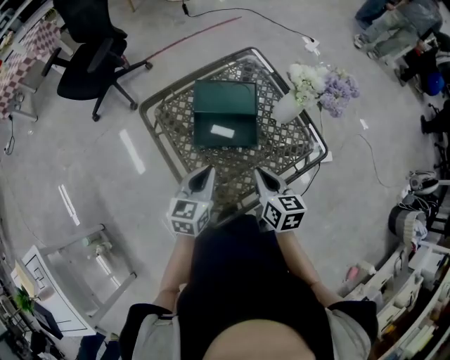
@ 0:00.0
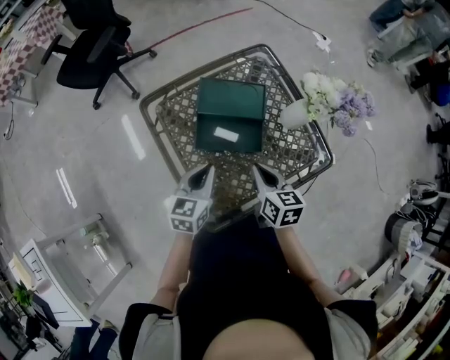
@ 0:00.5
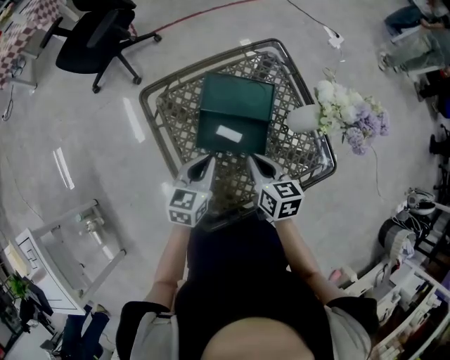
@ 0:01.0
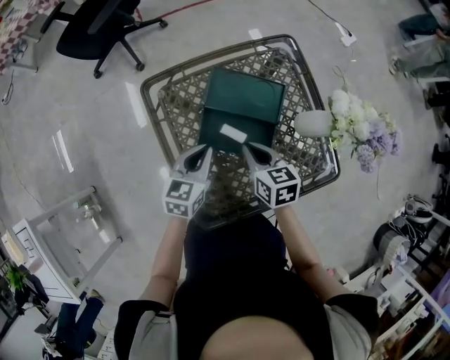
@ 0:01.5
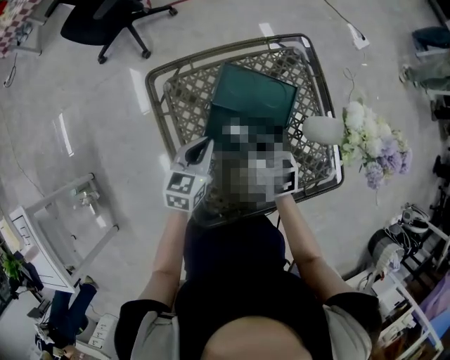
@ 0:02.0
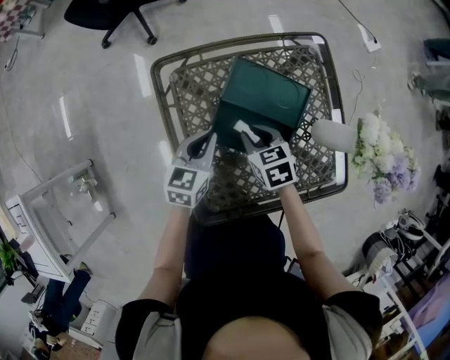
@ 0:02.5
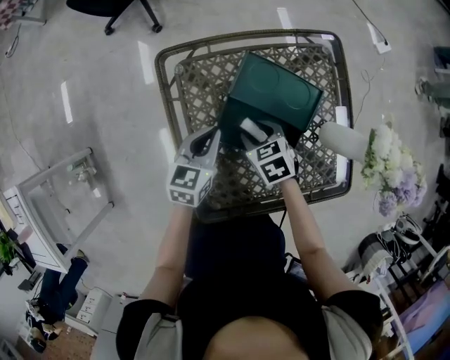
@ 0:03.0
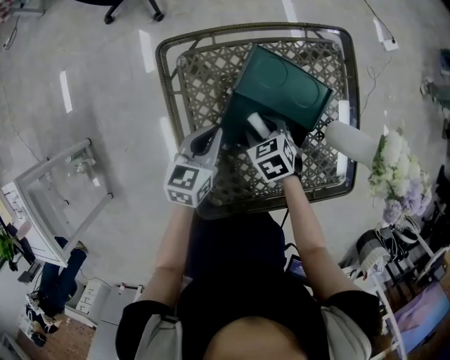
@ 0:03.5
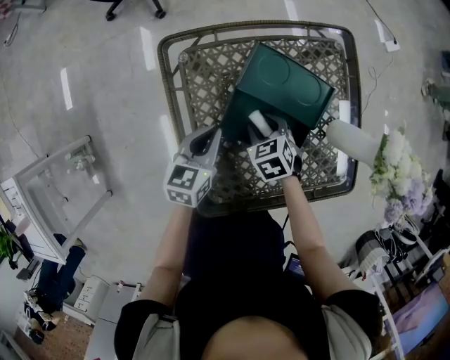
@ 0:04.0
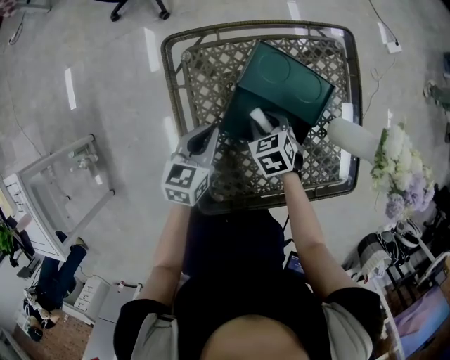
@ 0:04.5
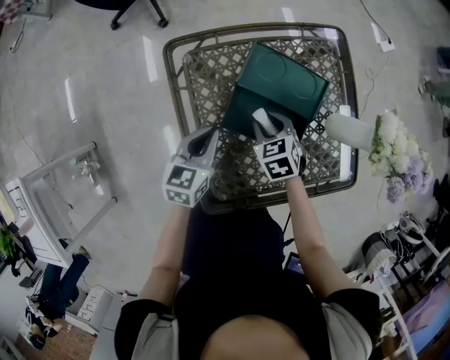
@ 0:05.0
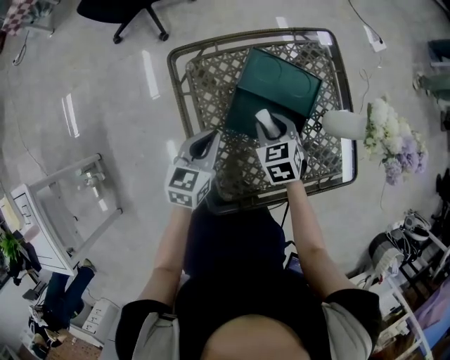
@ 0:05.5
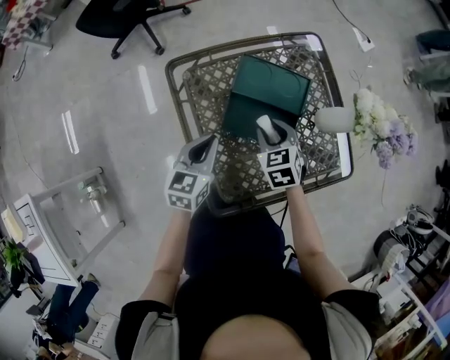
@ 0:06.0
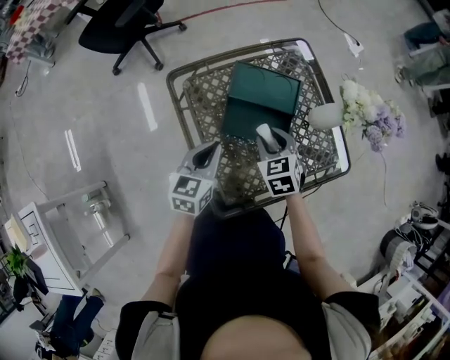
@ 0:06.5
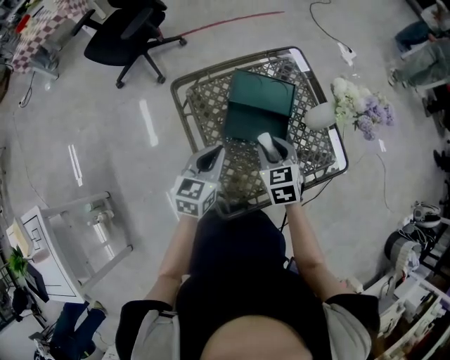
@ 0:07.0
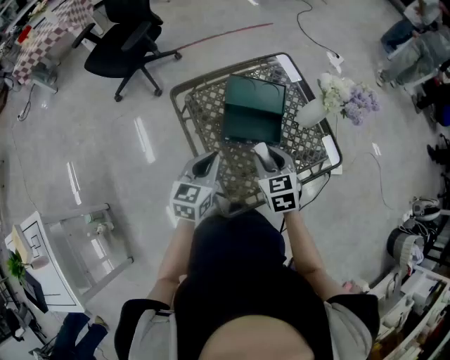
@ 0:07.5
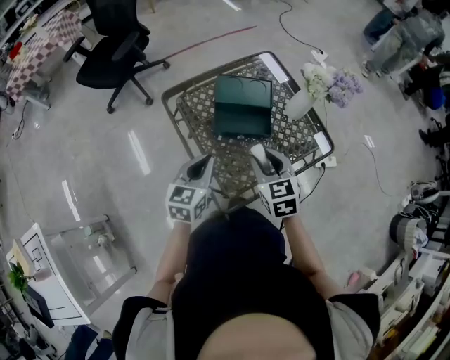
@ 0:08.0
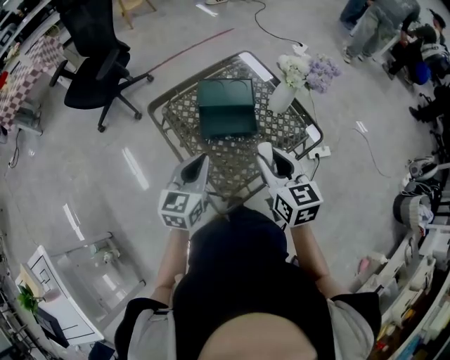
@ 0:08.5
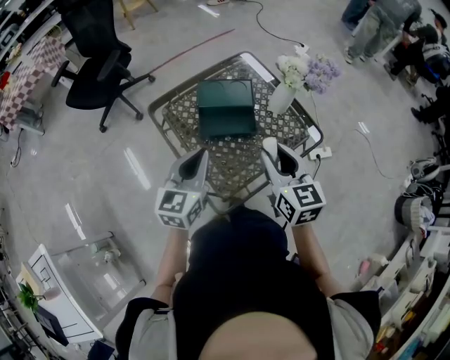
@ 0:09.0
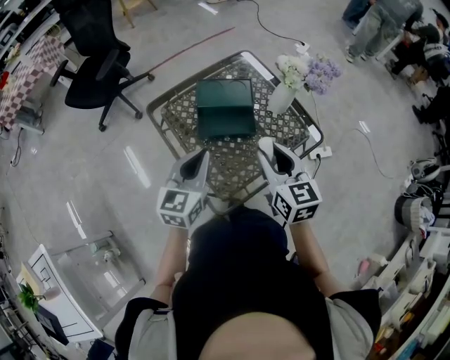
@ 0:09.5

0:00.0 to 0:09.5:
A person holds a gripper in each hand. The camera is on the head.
0:00.0 to 0:02.0: The left gripper moves forward and downward, approximately 15 cm. The right gripper shifts about 20 cm forward, downward and to the left, and changes its angle by roughly 30 degrees.
0:02.0 to 0:04.0: The right gripper shifts about 10 cm downward, swivels roughly 30 degrees, and opens its fingers.
0:04.0 to 0:05.5: The right gripper is displaced upward by some 10 cm; the left gripper heads upward, covering approximately 5 cm.
0:05.5 to 0:07.5: Both grippers move backward and upward, approximately 15 cm.
0:07.5 to 0:09.5: The left gripper heads upward, covering roughly 10 cm. Meanwhile the right gripper goes roughly 15 cm upward and to the right, and changes its angle by about 30 degrees.

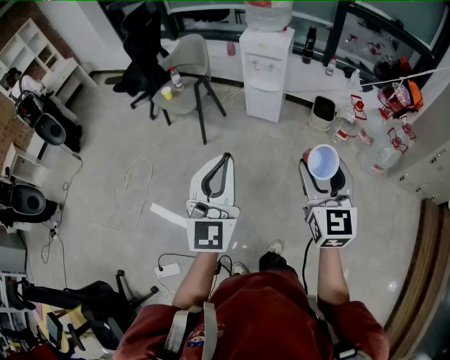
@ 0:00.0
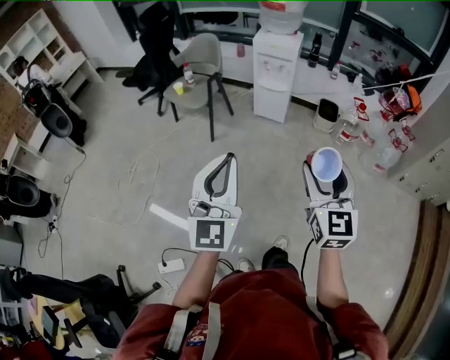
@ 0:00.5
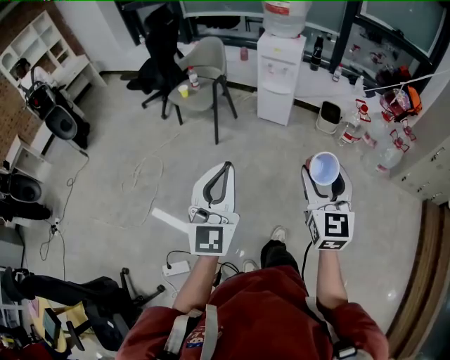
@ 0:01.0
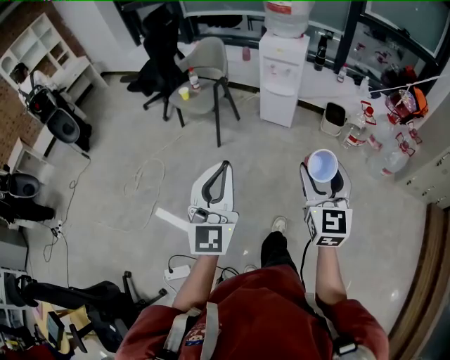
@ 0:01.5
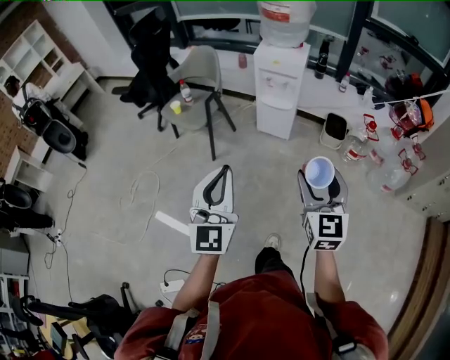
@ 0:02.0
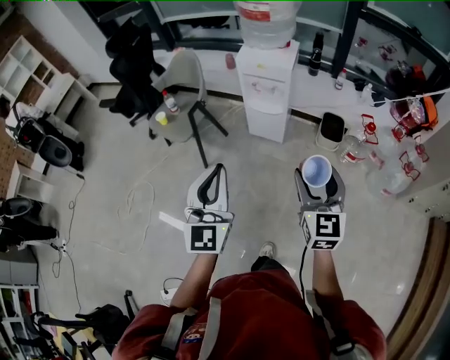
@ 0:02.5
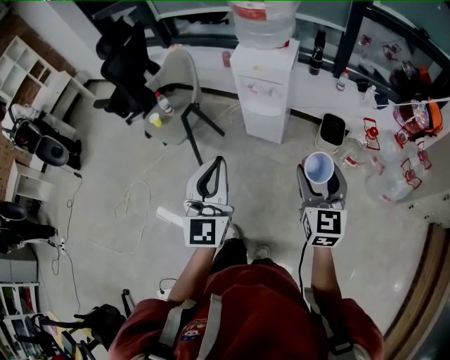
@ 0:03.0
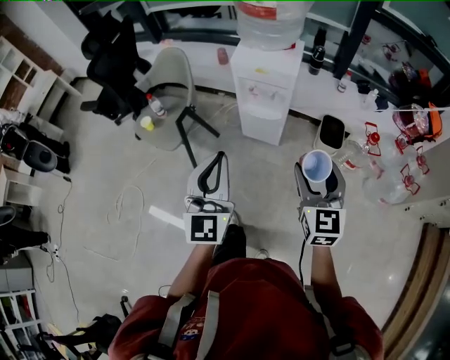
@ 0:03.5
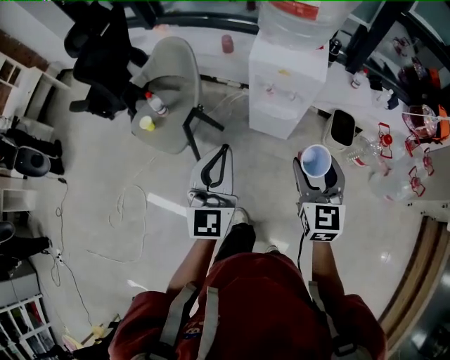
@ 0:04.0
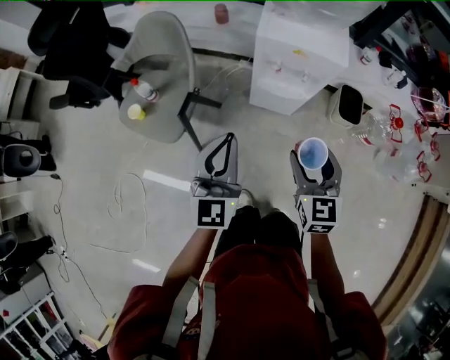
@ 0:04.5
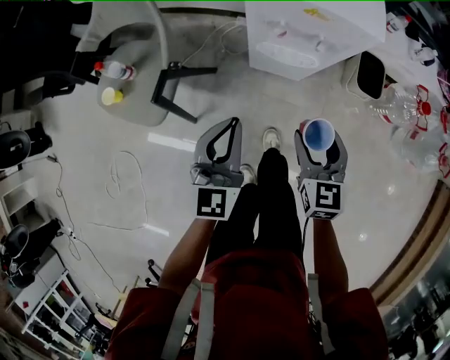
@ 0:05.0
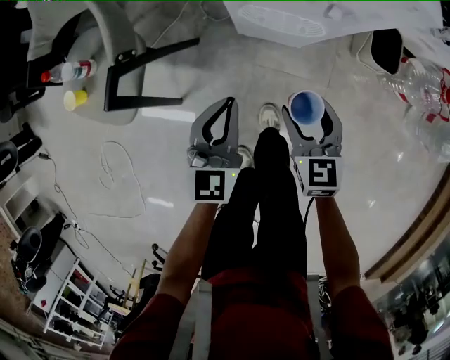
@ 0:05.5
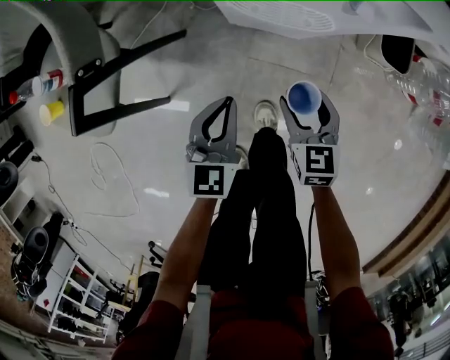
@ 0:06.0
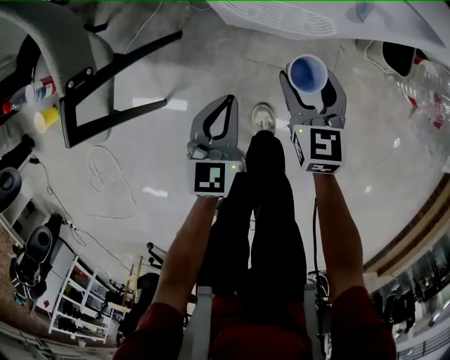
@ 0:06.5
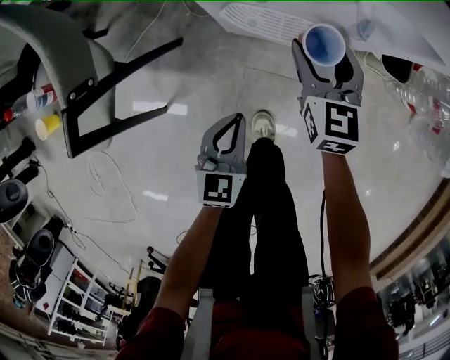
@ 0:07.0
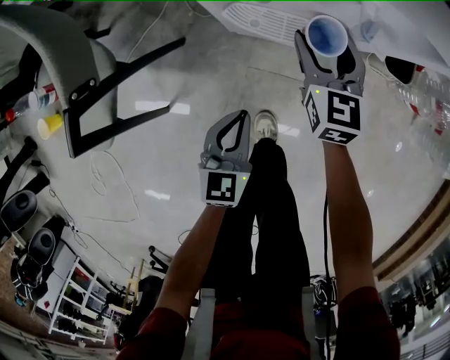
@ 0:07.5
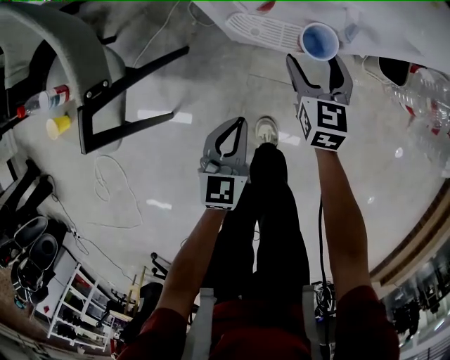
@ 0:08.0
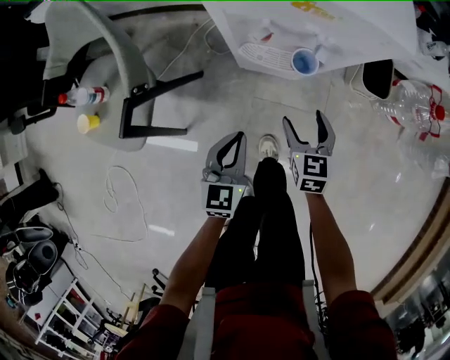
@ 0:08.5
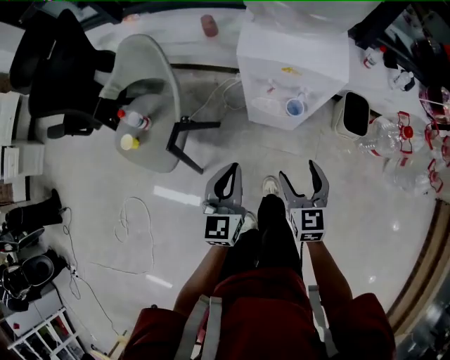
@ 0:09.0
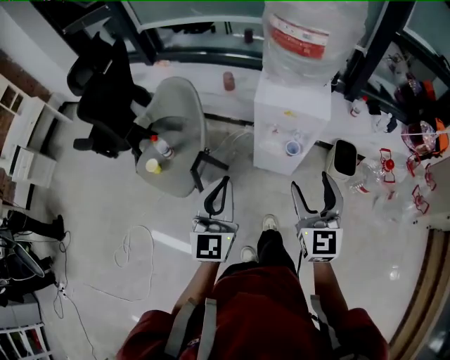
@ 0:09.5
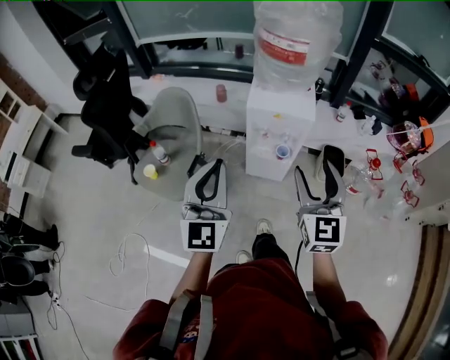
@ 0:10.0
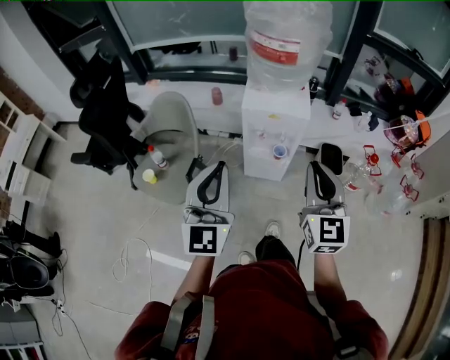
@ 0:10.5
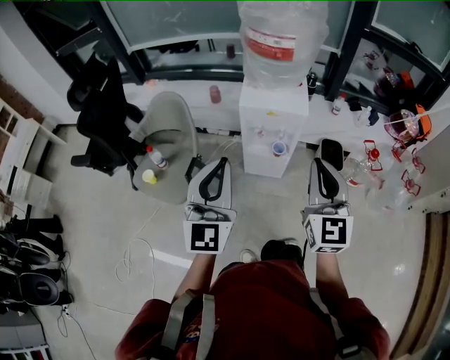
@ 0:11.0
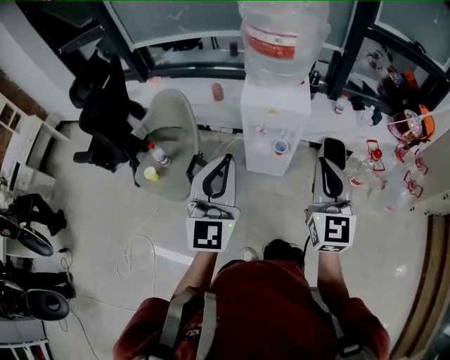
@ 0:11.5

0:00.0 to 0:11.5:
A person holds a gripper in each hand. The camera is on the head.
0:00.0 to 0:02.0: The left gripper travels forward and to the left by roughly 10 cm, while the right gripper moves forward, about 10 cm.
0:02.0 to 0:04.0: Both grippers travel together forward, roughly 40 cm.
0:04.0 to 0:06.0: The two grippers go some 50 cm downward. The right gripper rotates about 30 degrees; the left gripper tips its fingers downward by some 30 degrees.
0:06.0 to 0:07.5: The left gripper moves approximately 5 cm. The right gripper goes some 20 cm forward.
0:07.5 to 0:09.5: The right gripper heads upward and backward, covering roughly 60 cm, and rotates about 20 degrees. Meanwhile the left gripper is displaced upward by about 50 cm, and tilts its fingers roughly 30 degrees upward.
0:09.5 to 0:11.5: The right gripper heads upward and to the right, covering about 10 cm, and closes its fingers. The left gripper travels upward by about 10 cm.

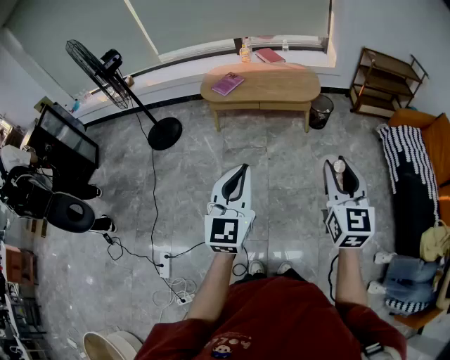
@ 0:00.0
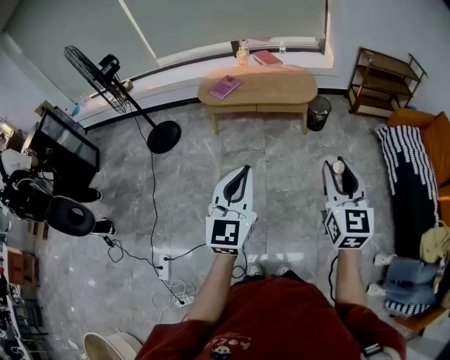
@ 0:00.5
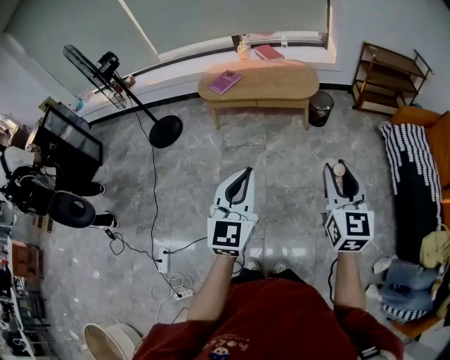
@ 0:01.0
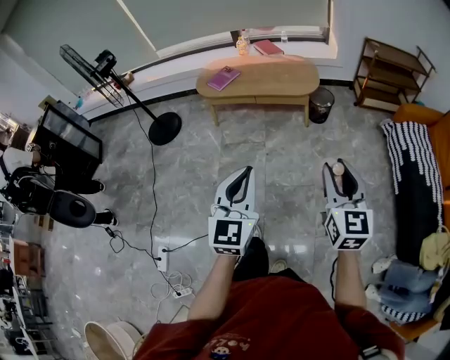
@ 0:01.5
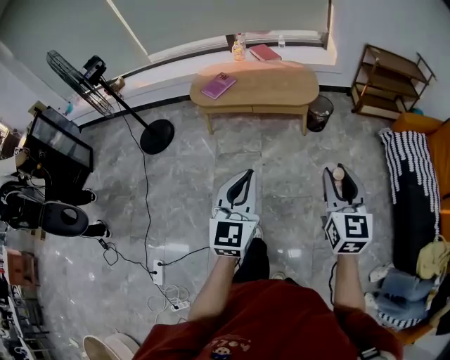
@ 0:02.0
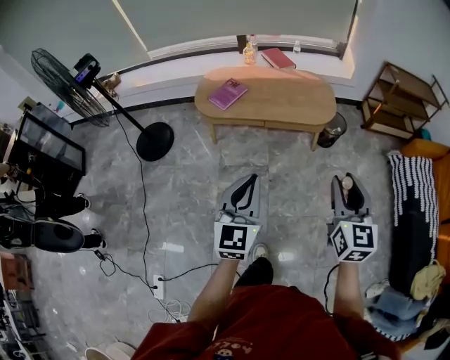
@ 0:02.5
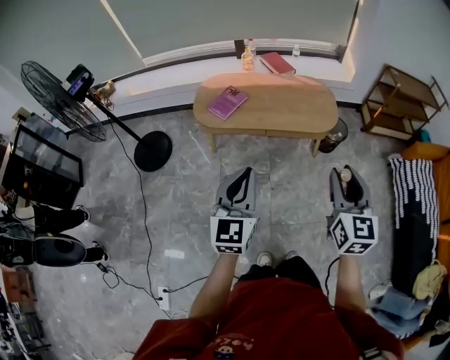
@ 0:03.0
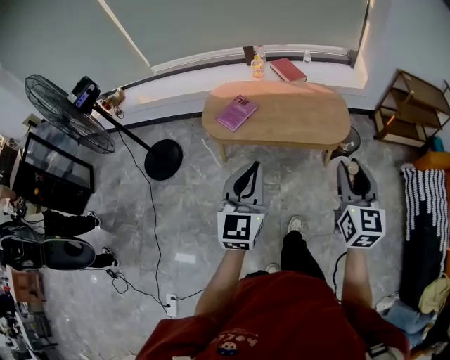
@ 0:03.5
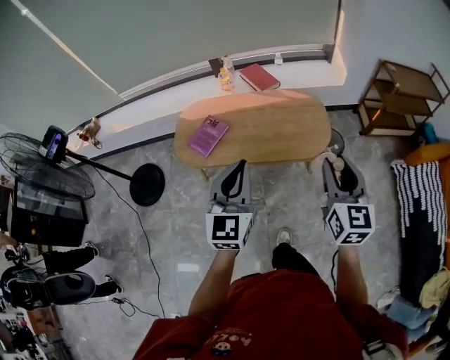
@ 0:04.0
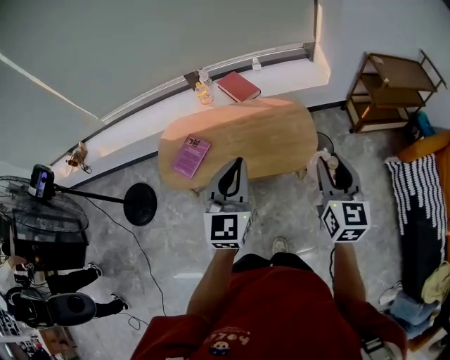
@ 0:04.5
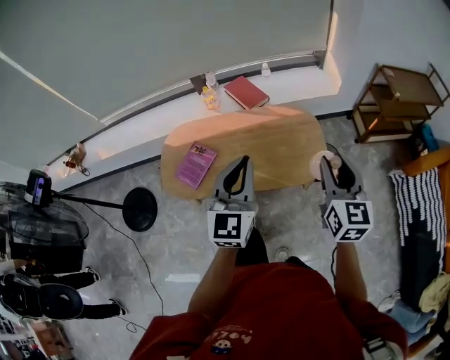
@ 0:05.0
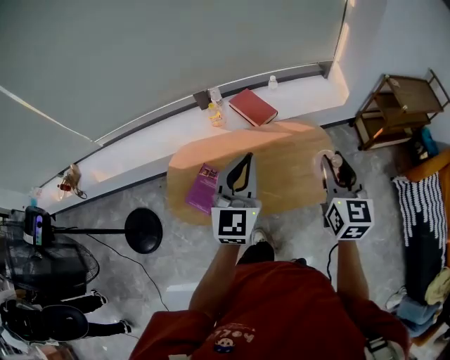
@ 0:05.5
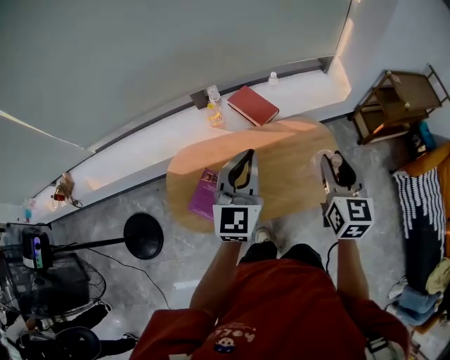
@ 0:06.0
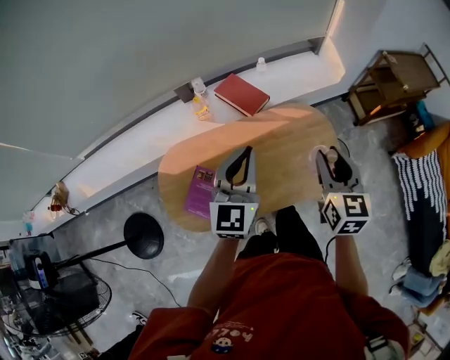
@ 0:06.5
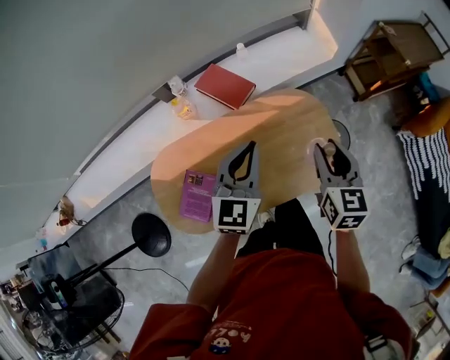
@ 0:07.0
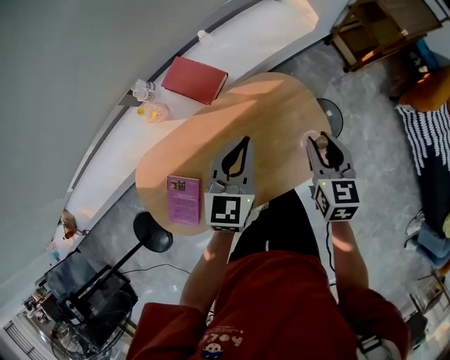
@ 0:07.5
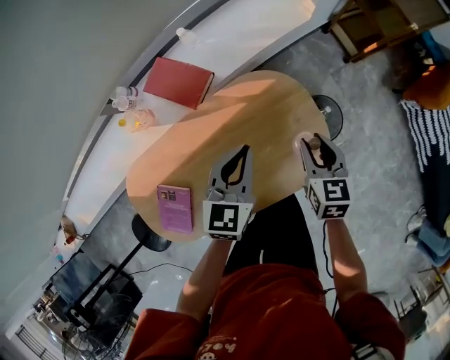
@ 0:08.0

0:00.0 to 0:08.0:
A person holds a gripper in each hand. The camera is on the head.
0:00.0 to 0:02.0: The right gripper heads forward, downward and to the right, covering approximately 15 cm. The left gripper moves forward, to the right and downward, roughly 15 cm.
0:02.0 to 0:04.0: The two grippers travel together, forward, some 50 cm.
0:04.0 to 0:06.0: The left gripper travels forward by approximately 40 cm, while the right gripper travels forward and to the left by about 40 cm.
0:06.0 to 0:08.0: The grippers both shift downward, forward and to the right by some 40 cm. The right gripper swivels approximately 30 degrees. Meanwhile the left gripper changes its angle by some 40 degrees.
